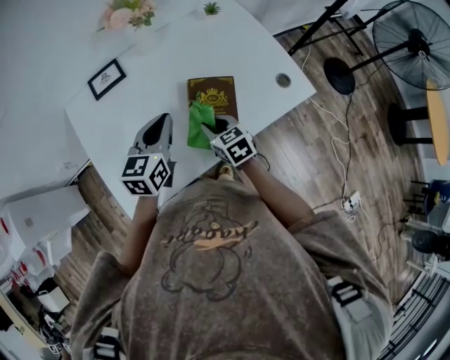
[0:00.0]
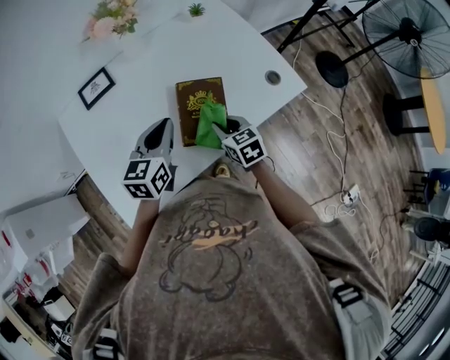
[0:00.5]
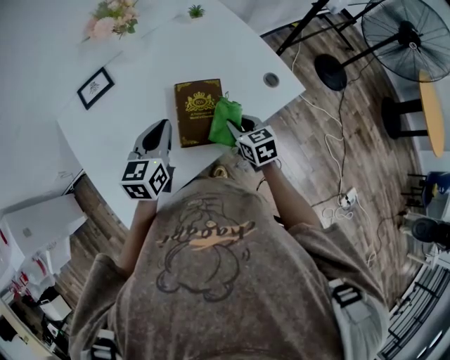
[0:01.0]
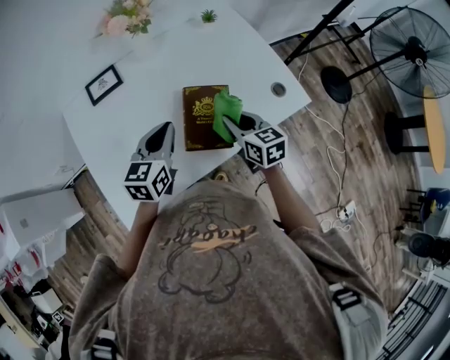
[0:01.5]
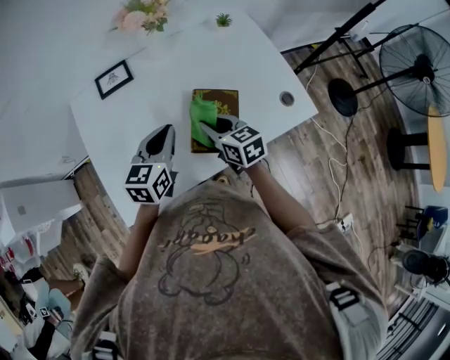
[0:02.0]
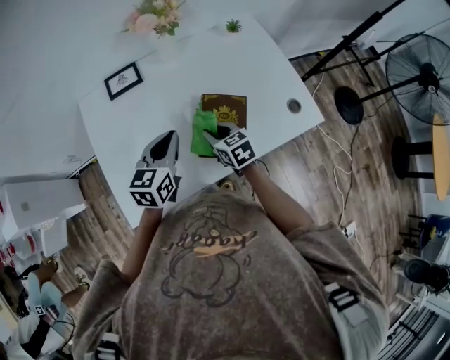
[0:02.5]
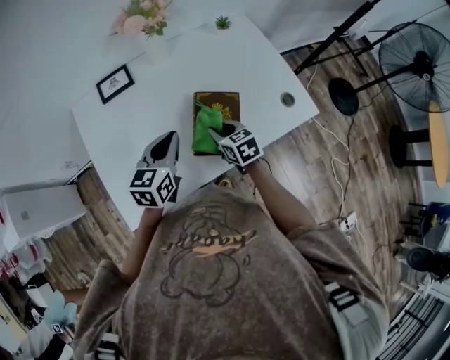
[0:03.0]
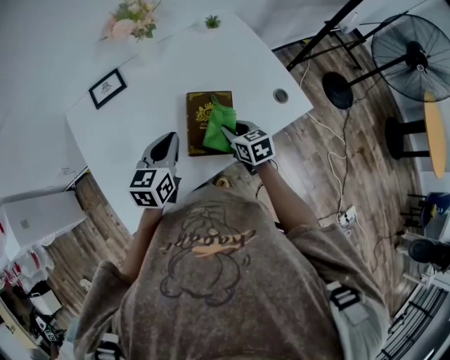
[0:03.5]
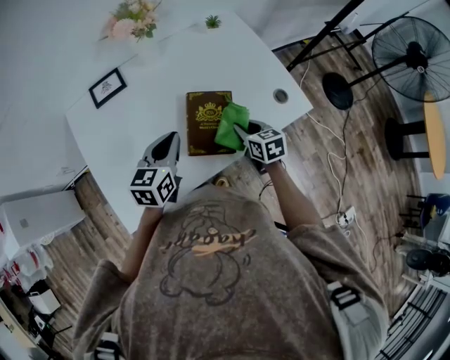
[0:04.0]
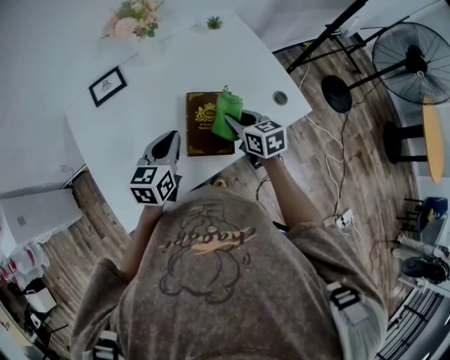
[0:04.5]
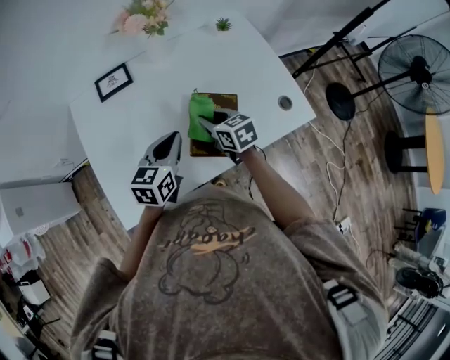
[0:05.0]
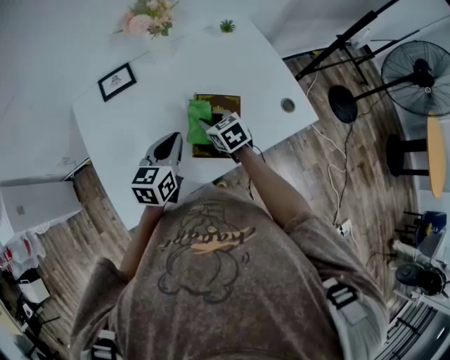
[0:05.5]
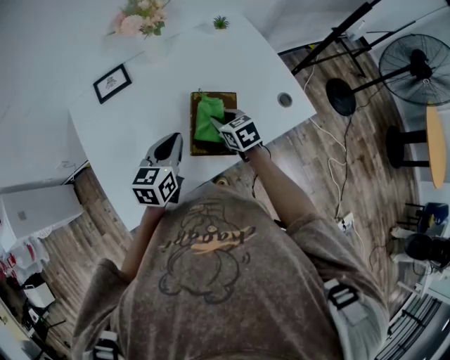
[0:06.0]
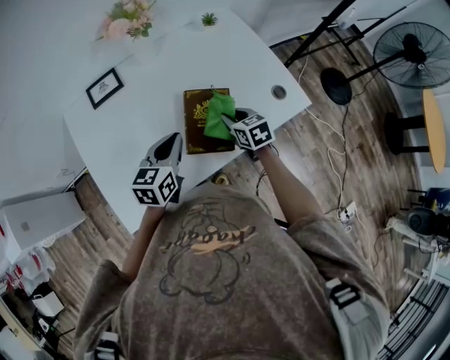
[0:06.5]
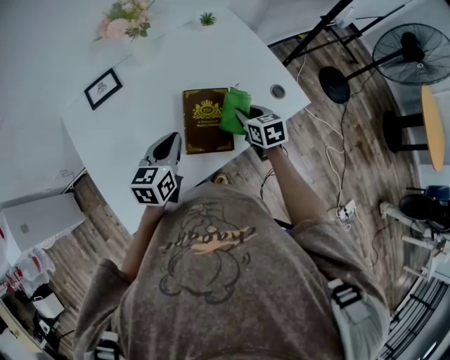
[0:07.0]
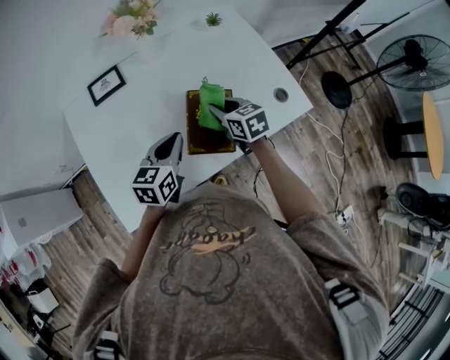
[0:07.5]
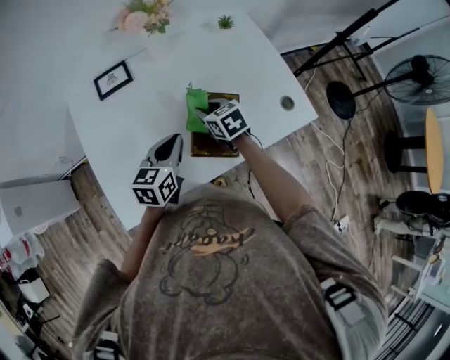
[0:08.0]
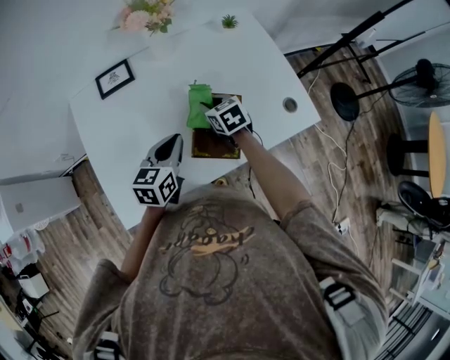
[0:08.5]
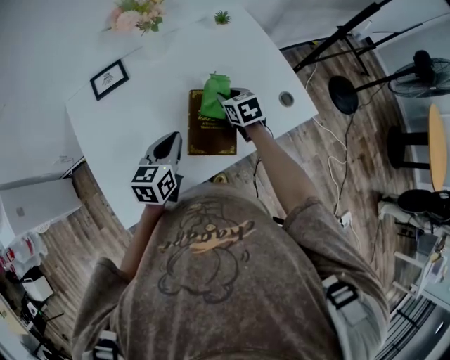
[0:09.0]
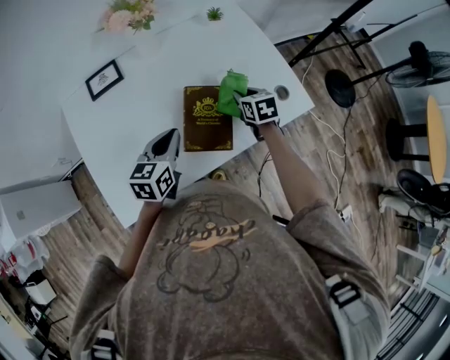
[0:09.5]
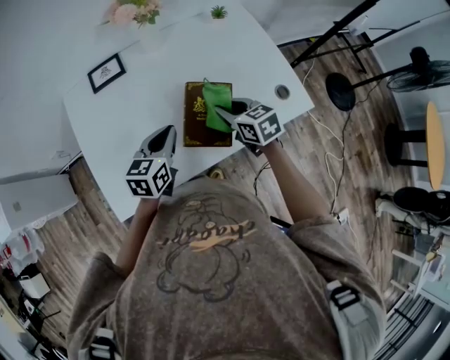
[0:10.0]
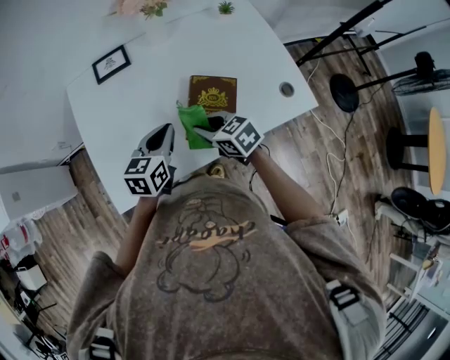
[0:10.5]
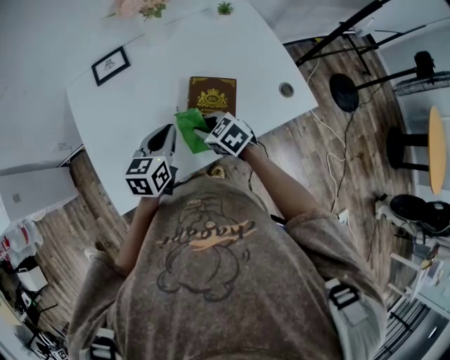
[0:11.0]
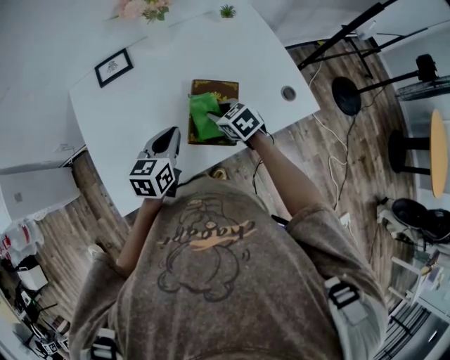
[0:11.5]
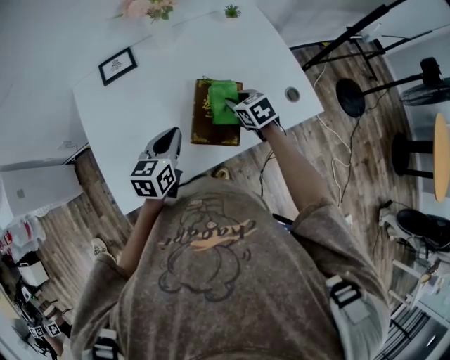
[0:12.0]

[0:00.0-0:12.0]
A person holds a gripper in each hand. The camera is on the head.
0:00.0 to 0:02.0: The right gripper goes approximately 5 cm upward, and goes to the right and returns, roughly 15 cm each way.
0:02.0 to 0:04.0: The right gripper travels to the right and downward by roughly 15 cm.
0:04.0 to 0:06.0: The right gripper is displaced to the left by some 10 cm.
0:06.0 to 0:08.0: The right gripper moves some 10 cm to the right and comes back.
0:08.0 to 0:10.0: The right gripper moves to the right and backward, approximately 10 cm.
0:10.0 to 0:12.0: The right gripper travels downward by some 5 cm, and moves some 10 cm to the left and comes back.

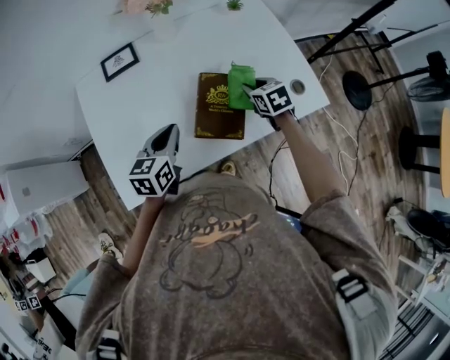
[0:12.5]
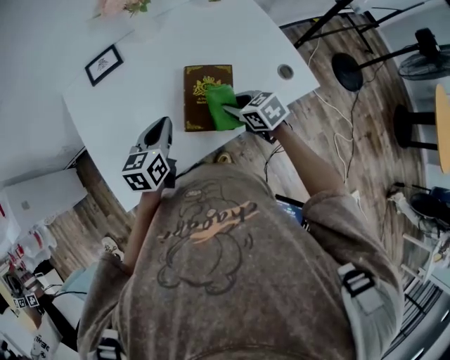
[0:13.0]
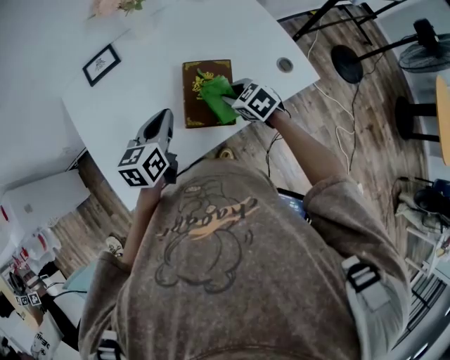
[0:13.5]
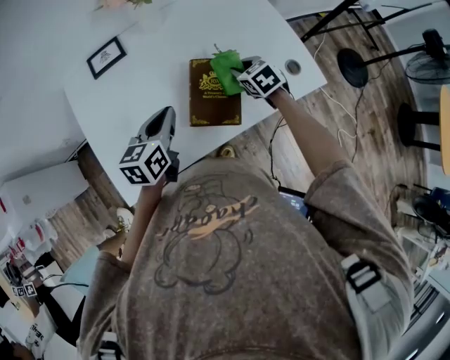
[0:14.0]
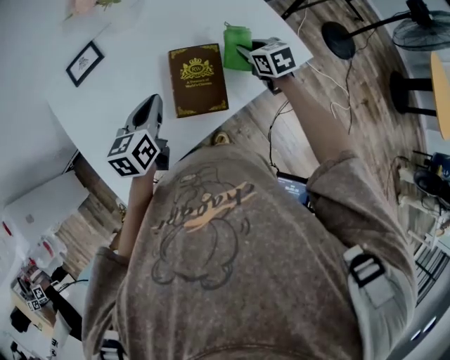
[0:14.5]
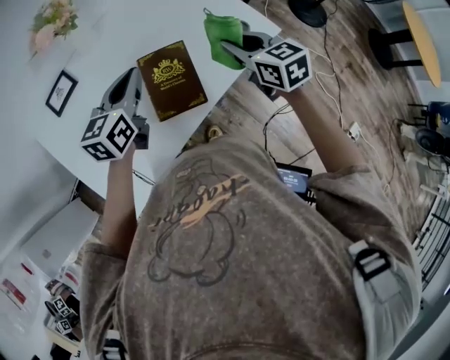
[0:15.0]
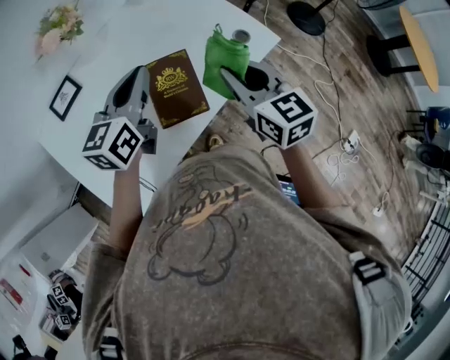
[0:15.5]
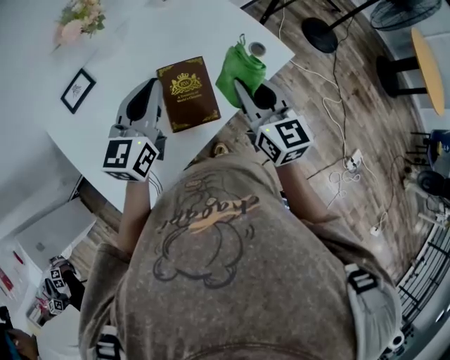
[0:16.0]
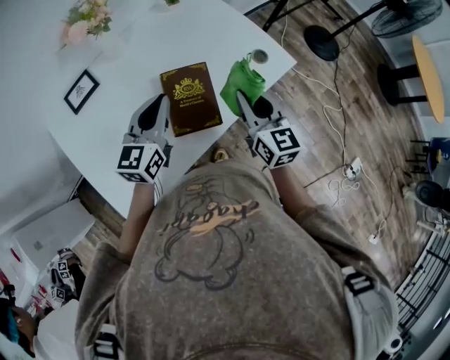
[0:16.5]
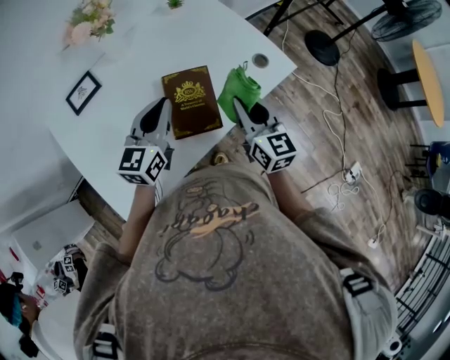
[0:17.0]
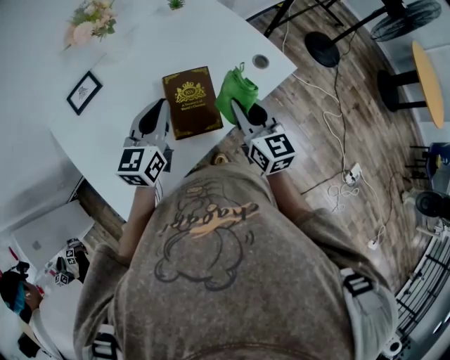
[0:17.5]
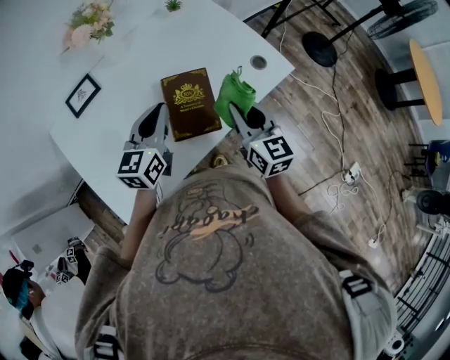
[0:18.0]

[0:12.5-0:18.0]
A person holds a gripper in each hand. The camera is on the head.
0:12.5 to 0:14.5: The right gripper is displaced to the right by approximately 5 cm.
0:14.5 to 0:16.0: The right gripper goes roughly 20 cm upward and backward, and tips its fingers upward by roughly 30 degrees; the left gripper moves upward and to the right, about 15 cm, and changes its angle by roughly 30 degrees.
0:16.0 to 0:18.0: Both grippers move downward, roughly 5 cm.

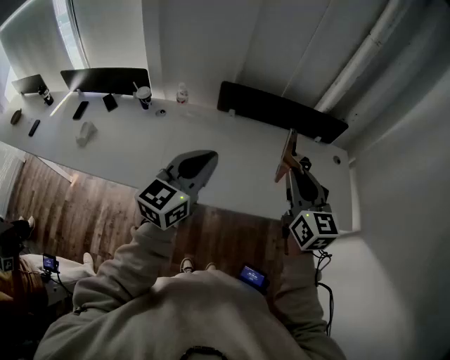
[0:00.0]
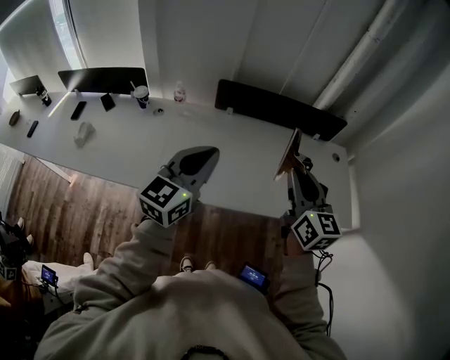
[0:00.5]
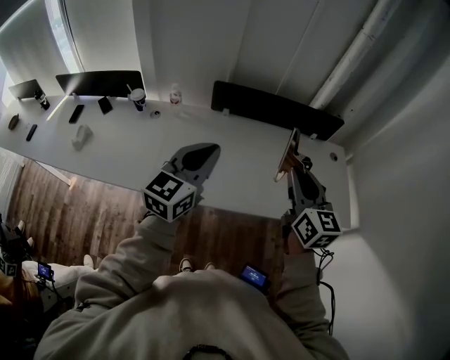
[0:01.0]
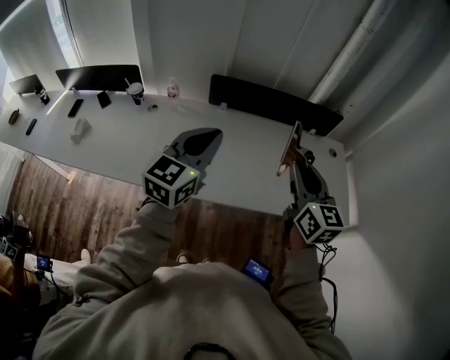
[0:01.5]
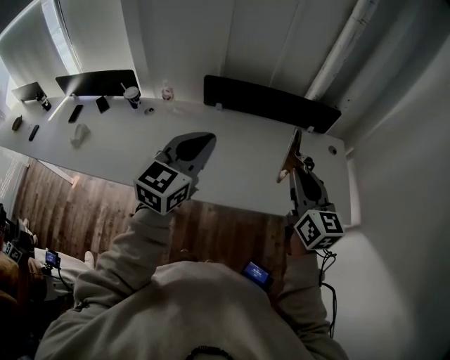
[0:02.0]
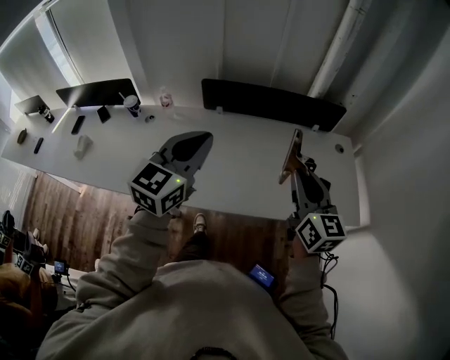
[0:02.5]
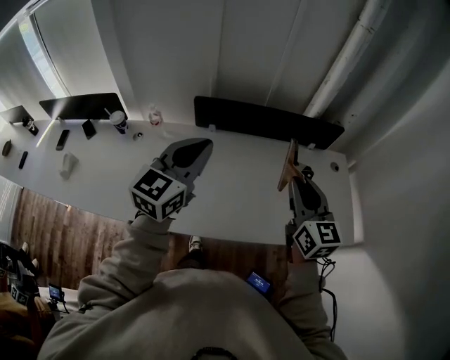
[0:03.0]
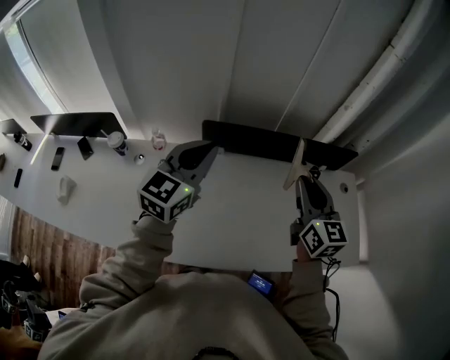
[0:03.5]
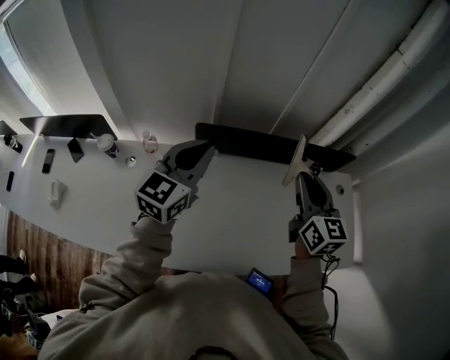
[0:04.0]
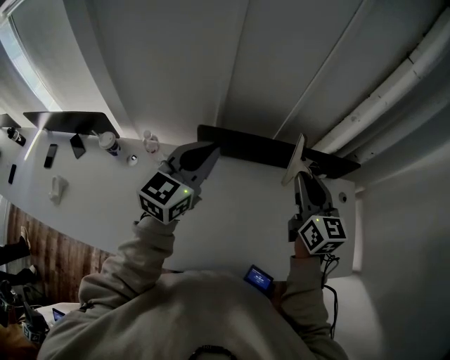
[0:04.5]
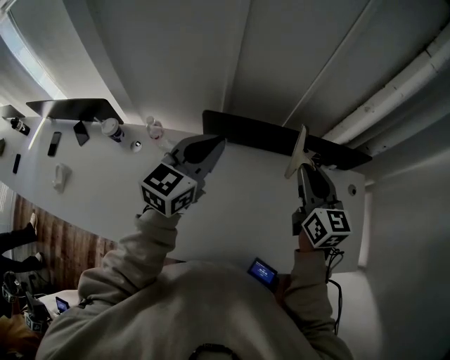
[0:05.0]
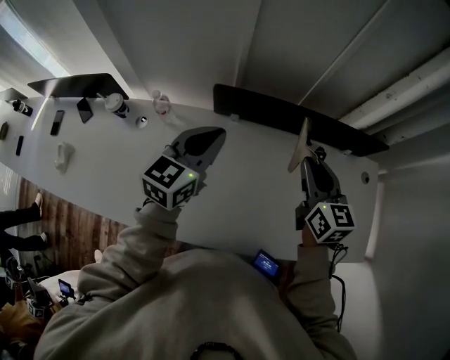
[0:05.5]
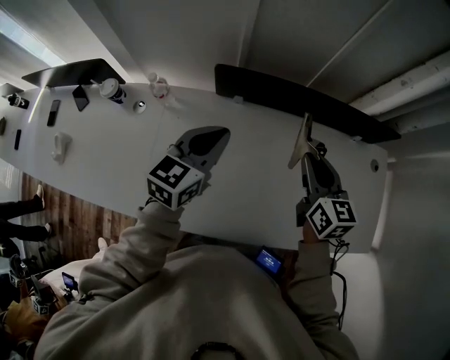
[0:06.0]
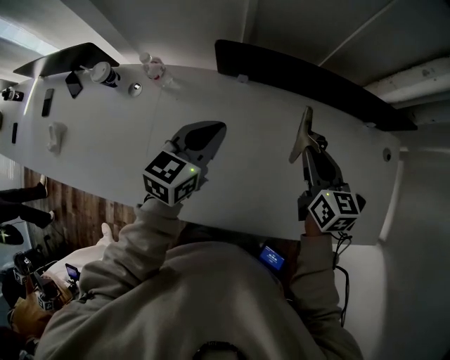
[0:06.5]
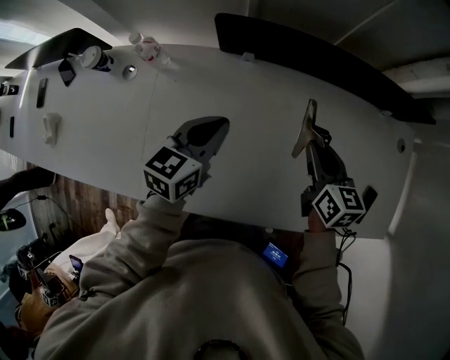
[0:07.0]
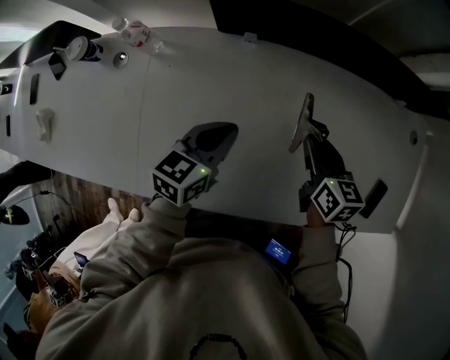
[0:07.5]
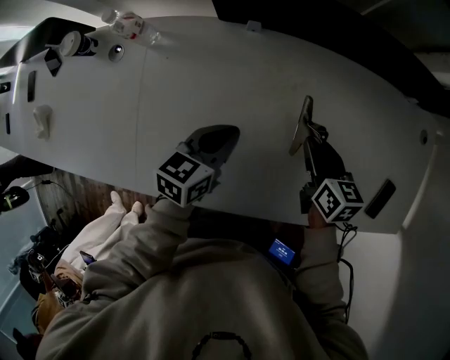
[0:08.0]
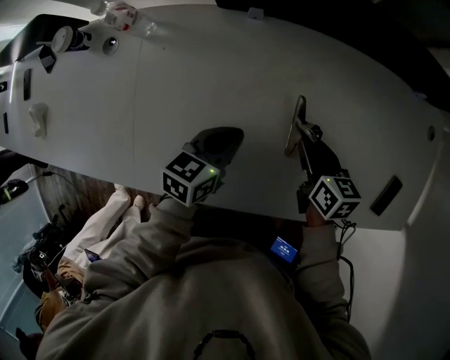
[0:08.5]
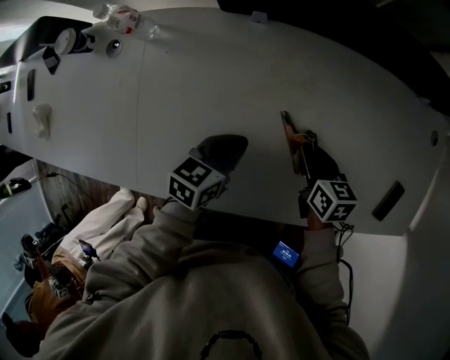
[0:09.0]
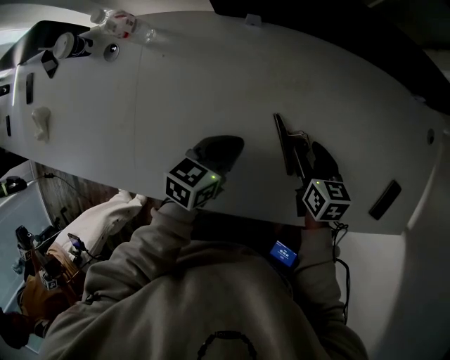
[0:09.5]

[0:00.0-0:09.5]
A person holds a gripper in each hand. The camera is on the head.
0:00.0 to 0:02.0: The grippers both shift to the right by approximately 10 cm.
0:02.0 to 0:04.0: The right gripper goes roughly 35 cm forward; the left gripper moves forward and to the left, approximately 40 cm.
0:04.0 to 0:05.5: Both grippers move downward, roughly 10 cm.
0:05.5 to 0:07.5: Both grippers move downward, roughly 25 cm. The left gripper turns by approximately 30 degrees. The right gripper rotates some 30 degrees.
0:07.5 to 0:09.5: The two grippers go about 15 cm downward. The right gripper opens.
